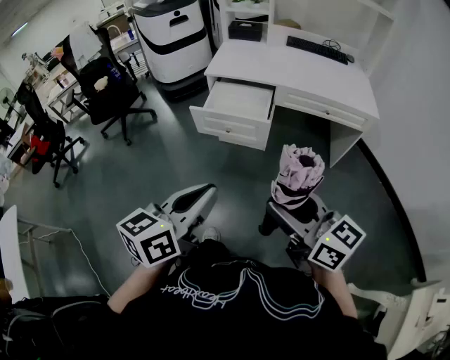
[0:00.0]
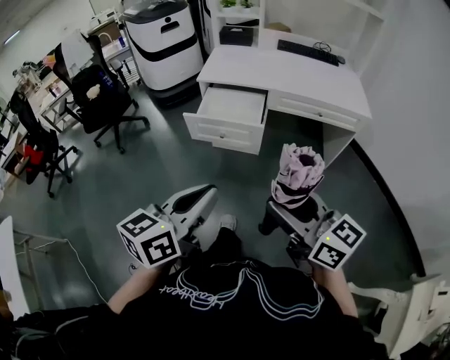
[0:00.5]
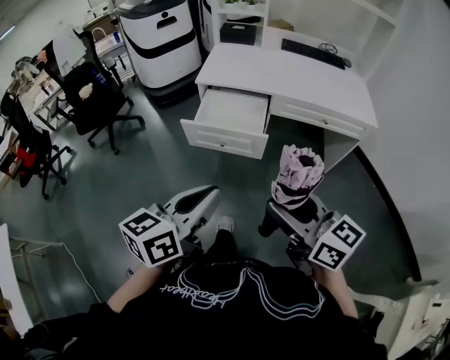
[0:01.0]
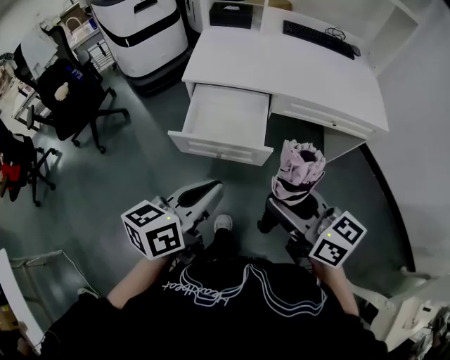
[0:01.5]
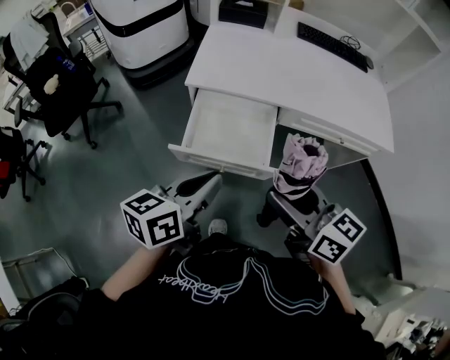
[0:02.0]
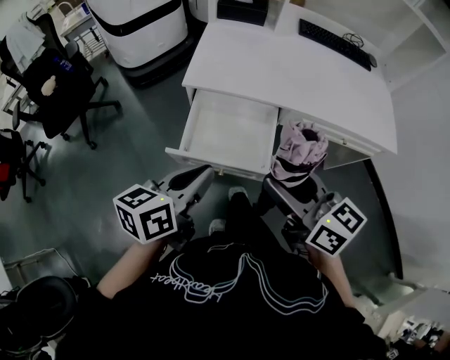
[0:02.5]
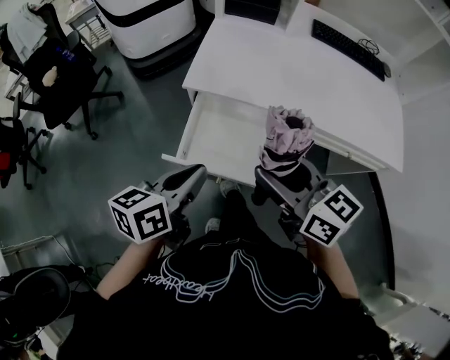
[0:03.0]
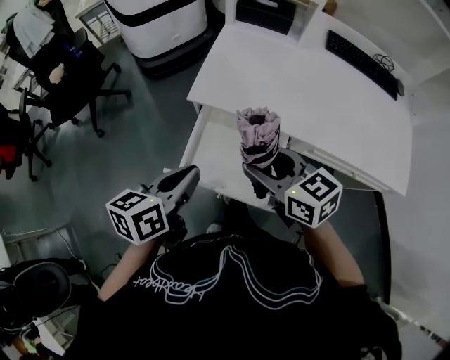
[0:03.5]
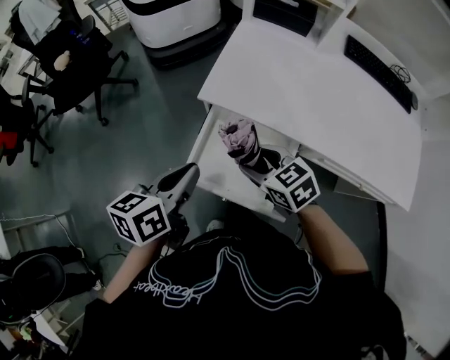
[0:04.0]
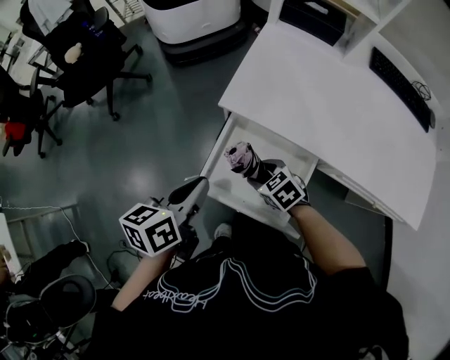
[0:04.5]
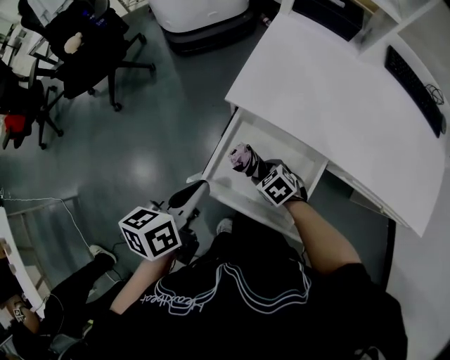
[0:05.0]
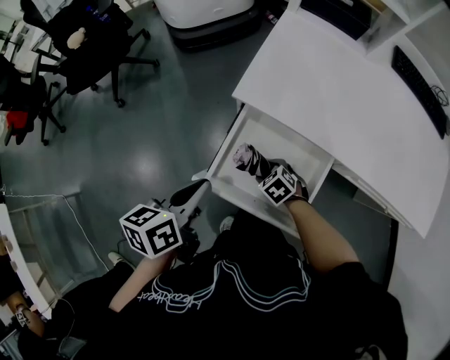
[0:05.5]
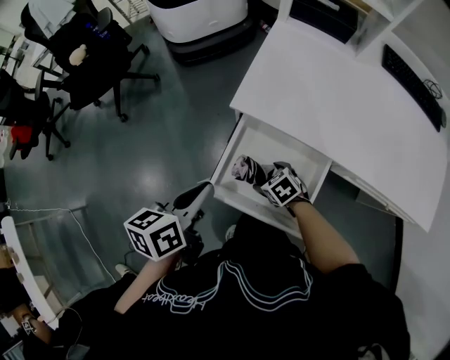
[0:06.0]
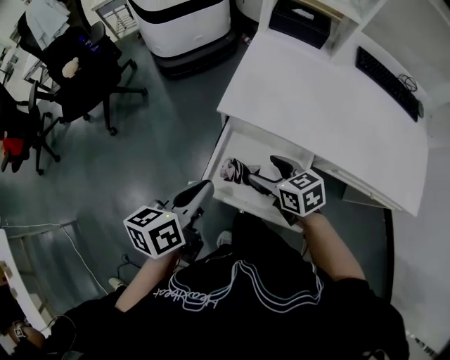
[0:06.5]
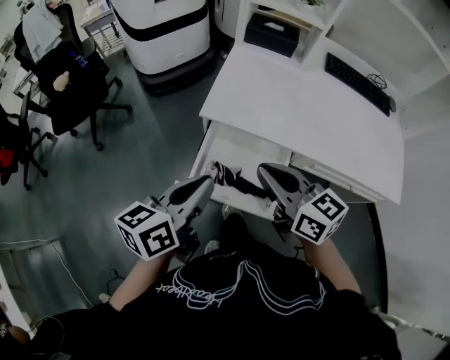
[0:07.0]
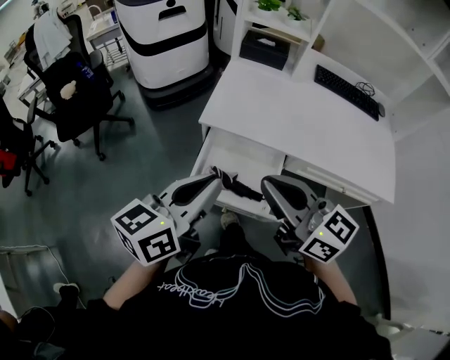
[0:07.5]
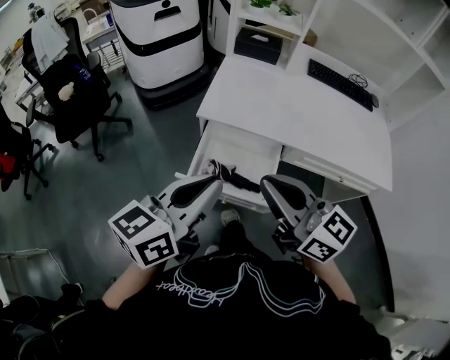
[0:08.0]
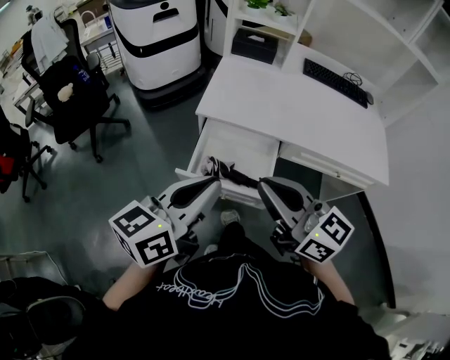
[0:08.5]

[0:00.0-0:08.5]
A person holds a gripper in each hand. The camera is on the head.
0:00.0 to 0:02.0: The grippers both shift forward by some 35 cm.
0:02.0 to 0:04.0: The right gripper goes roughly 30 cm forward and downward, and rotates about 40 degrees. Meanwhile the left gripper travels forward by approximately 15 cm, and swivels approximately 20 degrees.
0:04.0 to 0:06.5: The right gripper moves about 25 cm downward and comes back.
0:06.5 to 0:08.5: The left gripper heads upward and backward, covering about 20 cm, and changes its angle by approximately 30 degrees. Meanwhile the right gripper shifts approximately 35 cm upward and backward, tips its fingers upward by roughly 40 degrees, and closes its fingers.

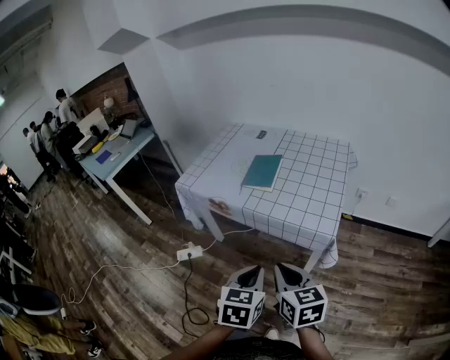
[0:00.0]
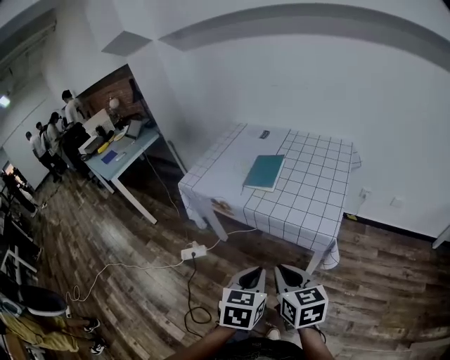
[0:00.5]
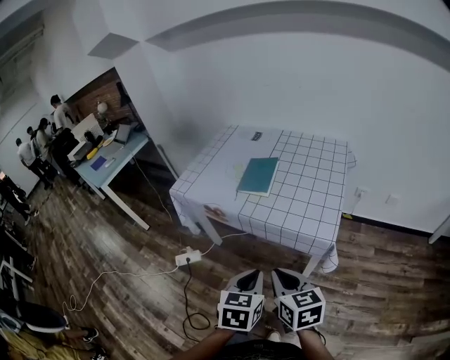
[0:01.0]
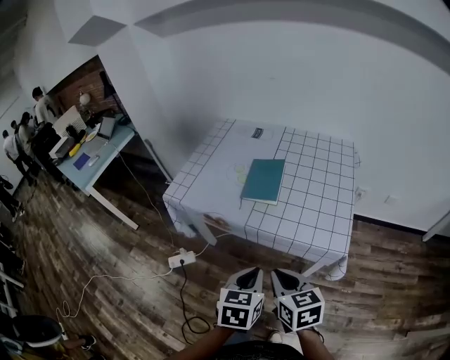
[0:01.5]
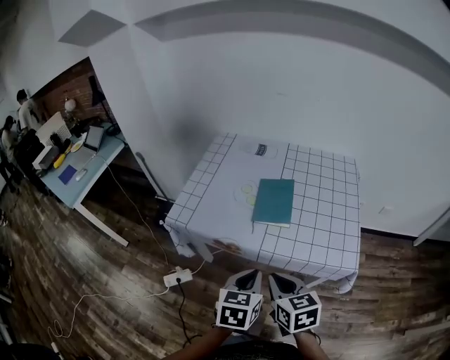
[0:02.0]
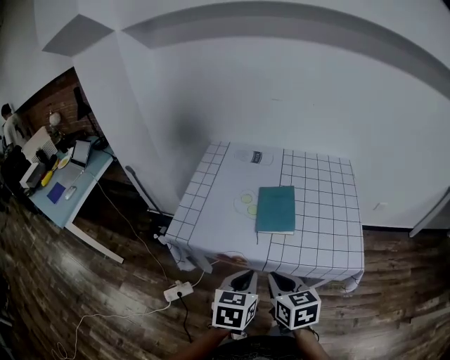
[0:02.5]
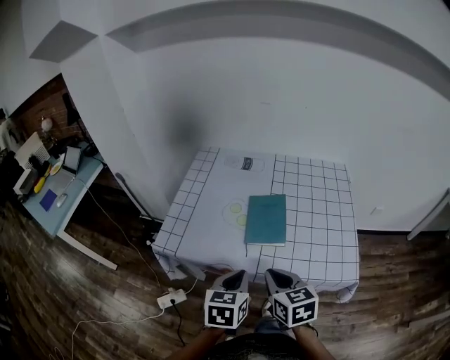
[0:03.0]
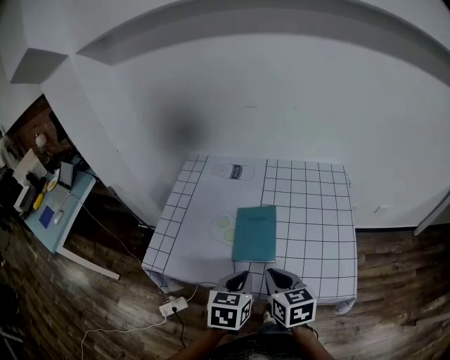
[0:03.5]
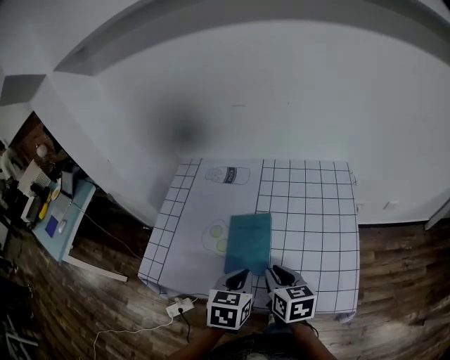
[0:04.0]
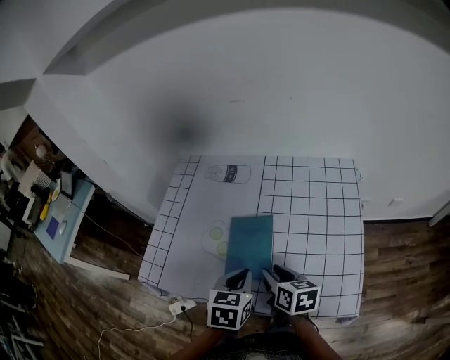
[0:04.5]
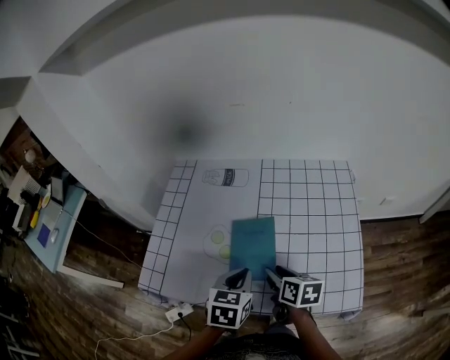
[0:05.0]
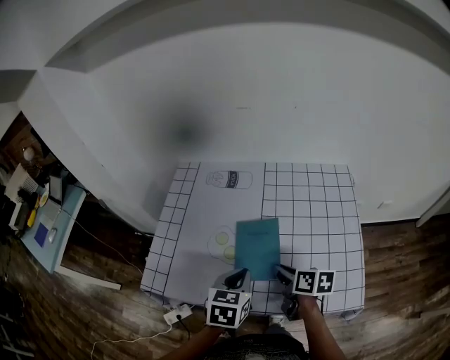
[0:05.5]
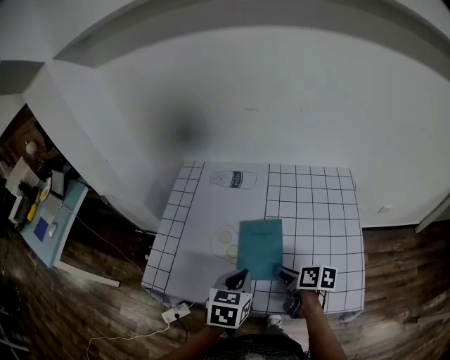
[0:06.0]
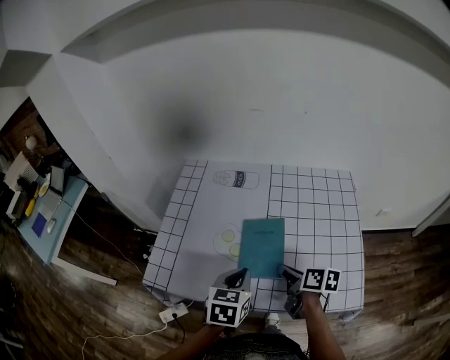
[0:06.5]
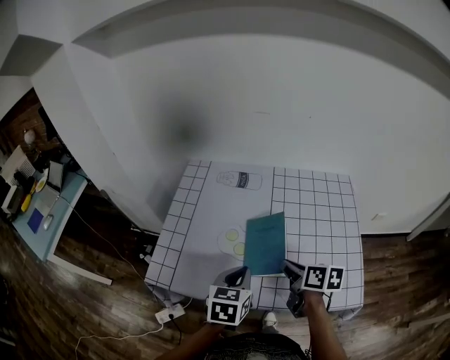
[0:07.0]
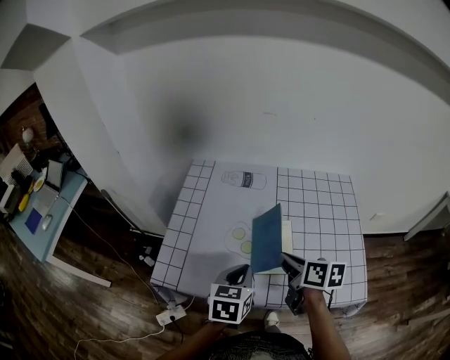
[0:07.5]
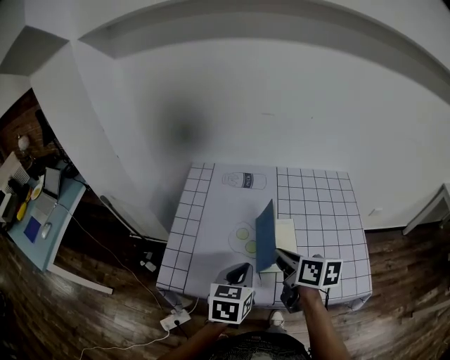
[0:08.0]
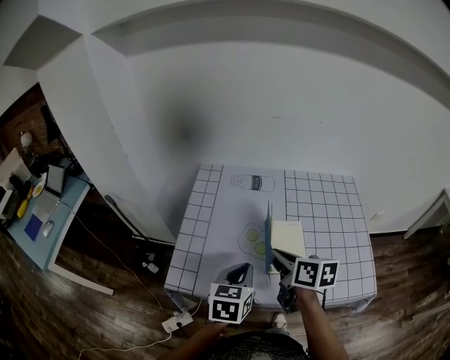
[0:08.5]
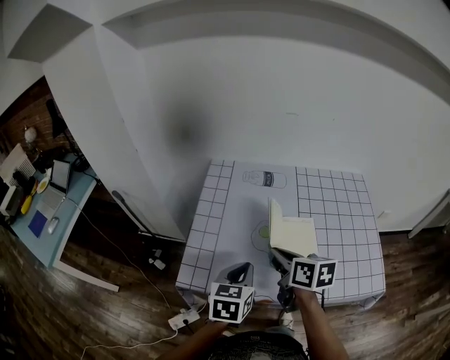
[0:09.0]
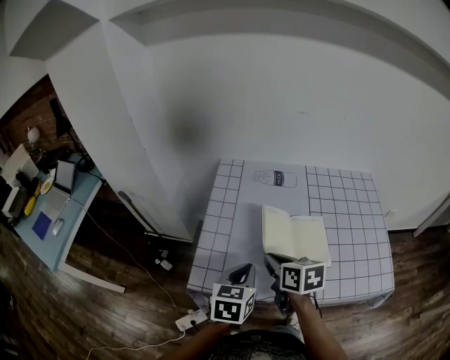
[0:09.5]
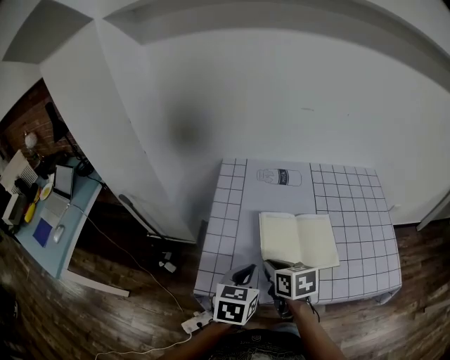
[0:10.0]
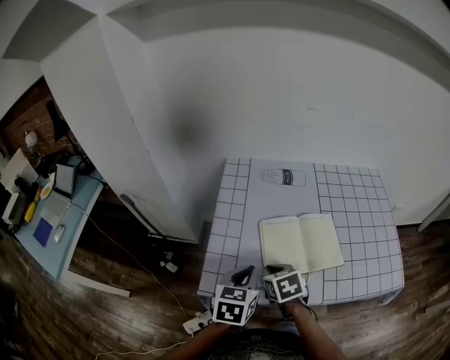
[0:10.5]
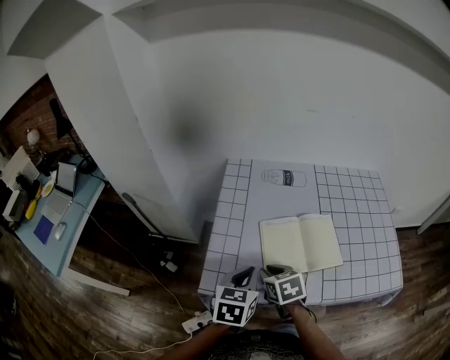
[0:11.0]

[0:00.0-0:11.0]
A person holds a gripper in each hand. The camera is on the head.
0:00.0 to 0:02.0: Both grippers move forward and to the left, about 20 cm.
0:02.0 to 0:03.5: The grippers both shift forward by about 15 cm.
0:03.5 to 0:05.5: The right gripper heads forward and downward, covering roughly 10 cm, turns by some 30 degrees, and opens, then closes once more; the left gripper is displaced forward by roughly 10 cm.
0:05.5 to 0:07.5: The left gripper is displaced to the left by about 5 cm. Meanwhile the right gripper travels upward and to the left by about 10 cm.
0:07.5 to 0:09.0: The two grippers go some 10 cm to the left.
0:09.0 to 0:11.0: The left gripper heads to the left, covering some 5 cm. Meanwhile the right gripper heads downward and to the left, covering about 15 cm, and turns by roughly 30 degrees.

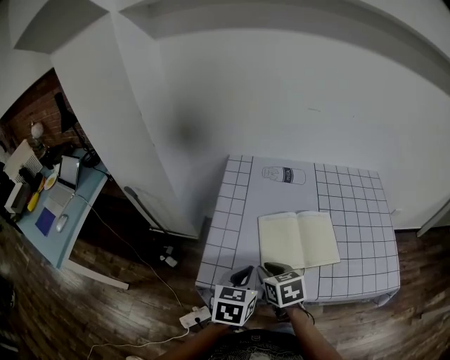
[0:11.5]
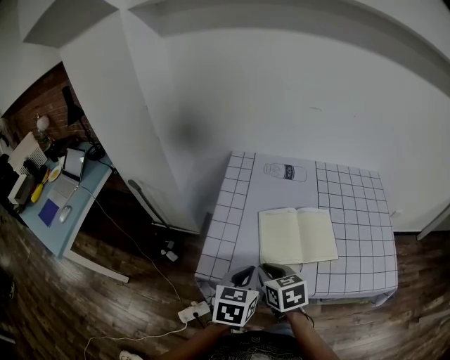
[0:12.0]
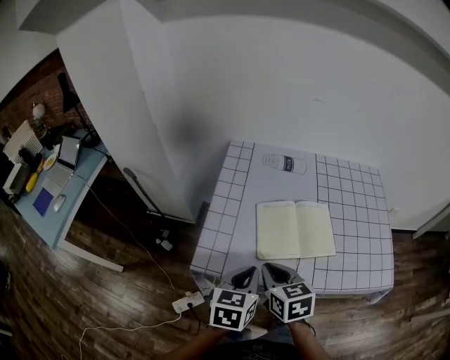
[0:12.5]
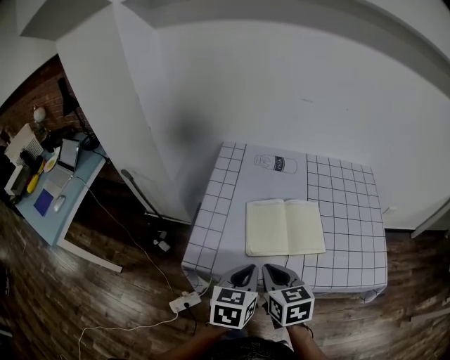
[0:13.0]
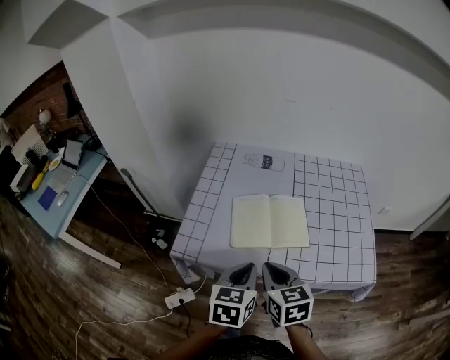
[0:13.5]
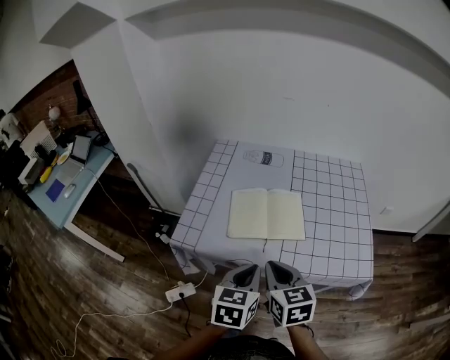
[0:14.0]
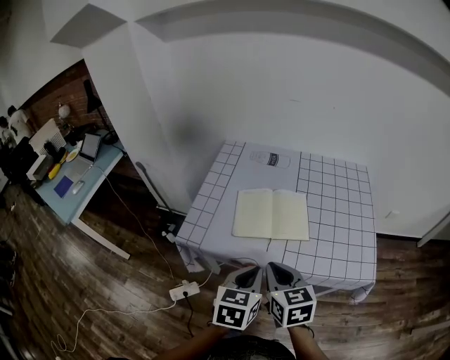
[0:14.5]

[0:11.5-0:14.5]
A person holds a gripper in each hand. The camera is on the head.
0:11.5 to 0:13.0: The left gripper moves backward and to the right, roughly 5 cm. Meanwhile the right gripper shifts some 10 cm upward, backward and to the right.
0:13.0 to 0:14.5: The right gripper goes approximately 10 cm to the right and backward. Meanwhile the left gripper travels backward and to the right by approximately 15 cm.

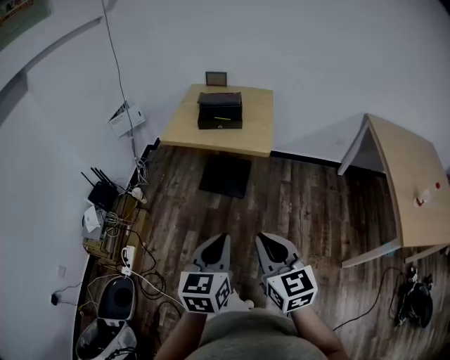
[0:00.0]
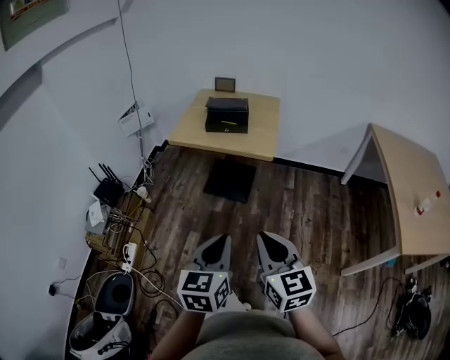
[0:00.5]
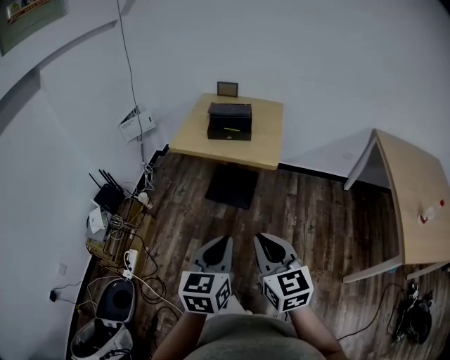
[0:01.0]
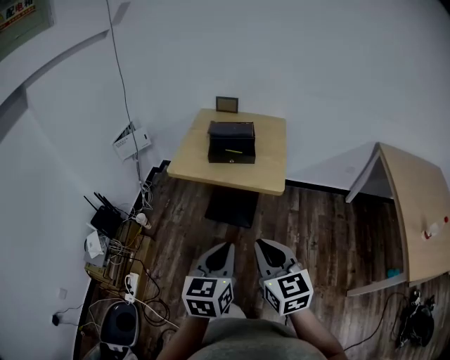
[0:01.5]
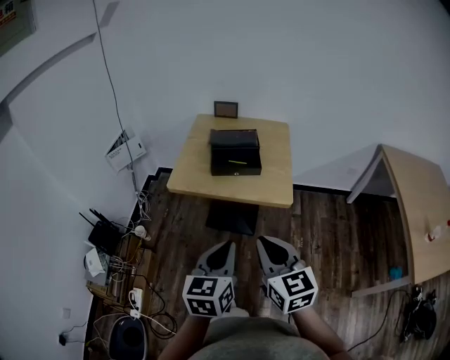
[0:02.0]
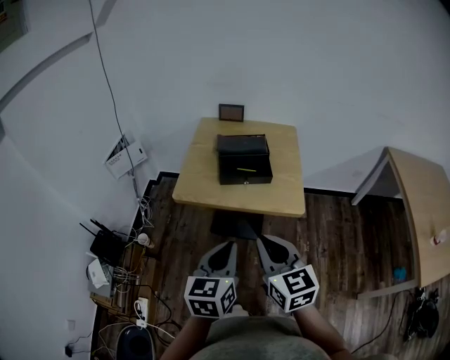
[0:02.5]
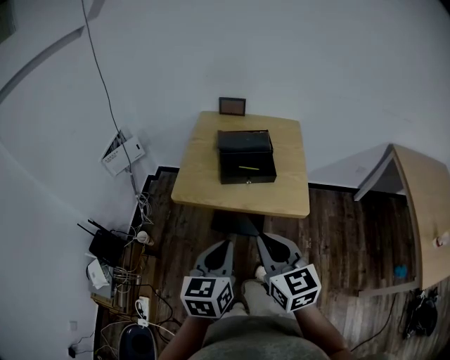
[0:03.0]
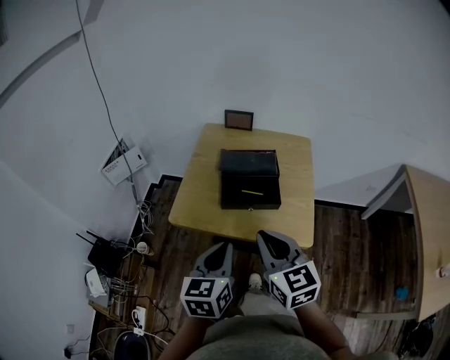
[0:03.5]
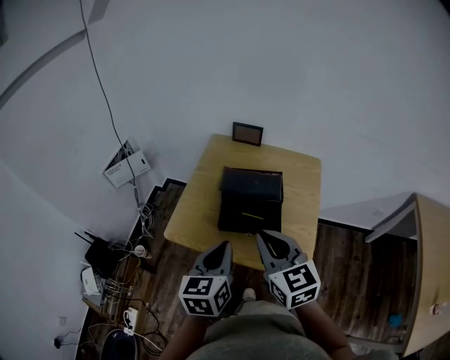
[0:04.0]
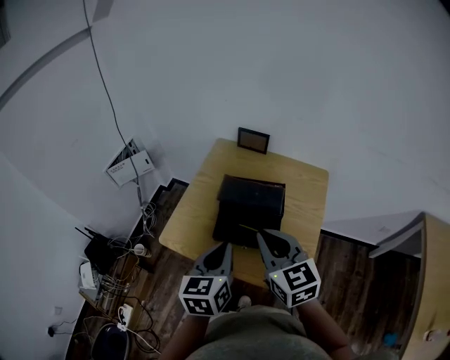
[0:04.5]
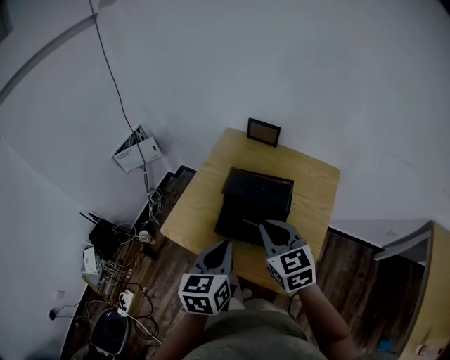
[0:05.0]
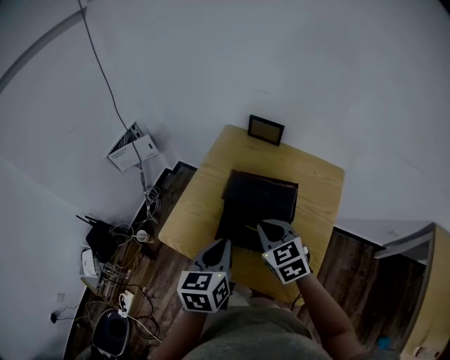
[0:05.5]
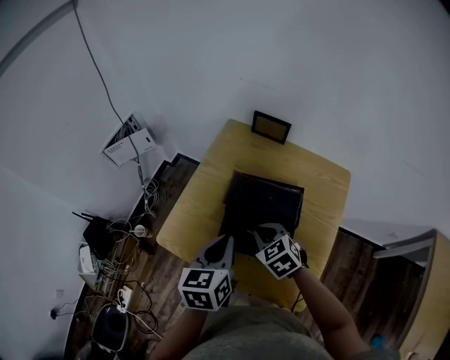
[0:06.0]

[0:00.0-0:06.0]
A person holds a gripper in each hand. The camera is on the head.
0:00.0 to 0:02.0: The two grippers go approximately 25 cm forward.
0:02.0 to 0:04.0: The grippers both shift forward by approximately 30 cm.
0:04.0 to 0:06.0: The left gripper is displaced forward and downward by approximately 15 cm. Meanwhile the right gripper travels downward and forward by about 25 cm, and angles its fingers downward, by about 30 degrees.
